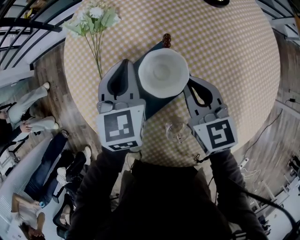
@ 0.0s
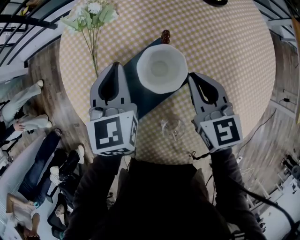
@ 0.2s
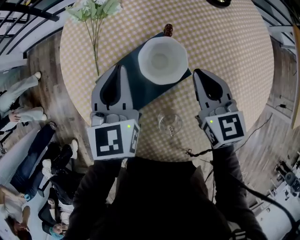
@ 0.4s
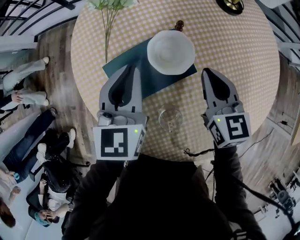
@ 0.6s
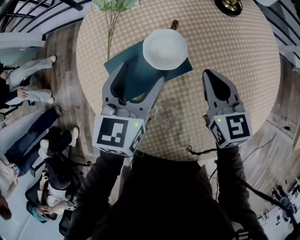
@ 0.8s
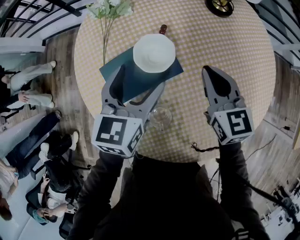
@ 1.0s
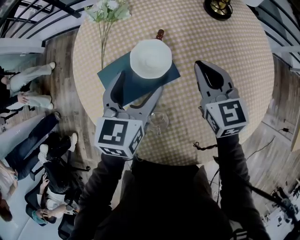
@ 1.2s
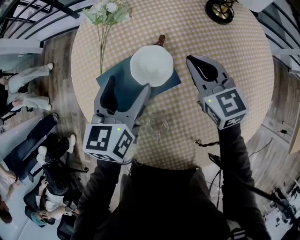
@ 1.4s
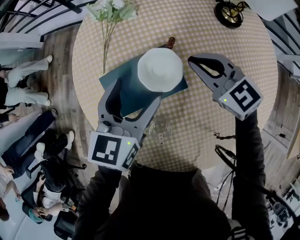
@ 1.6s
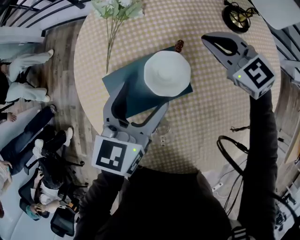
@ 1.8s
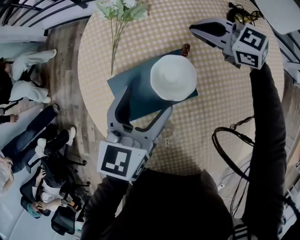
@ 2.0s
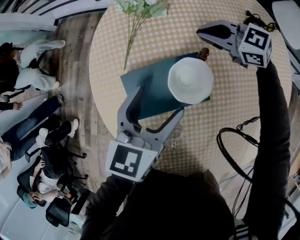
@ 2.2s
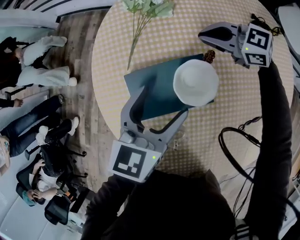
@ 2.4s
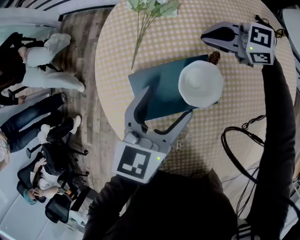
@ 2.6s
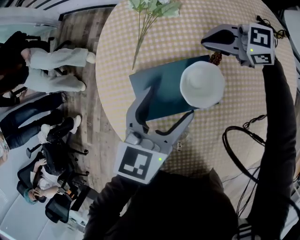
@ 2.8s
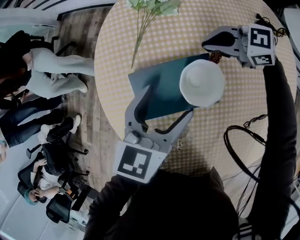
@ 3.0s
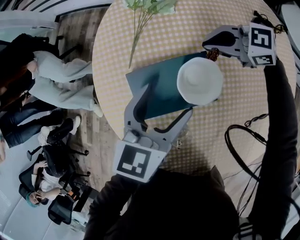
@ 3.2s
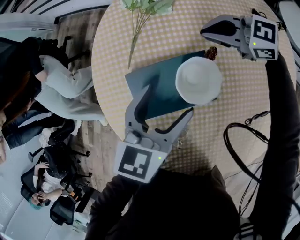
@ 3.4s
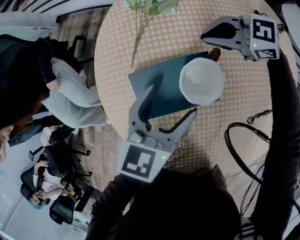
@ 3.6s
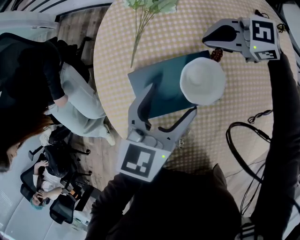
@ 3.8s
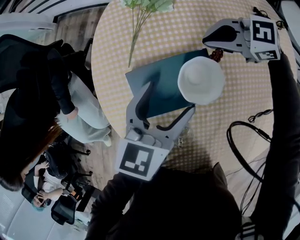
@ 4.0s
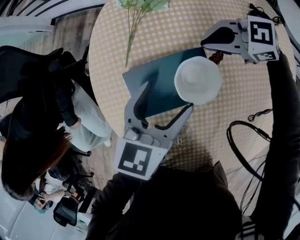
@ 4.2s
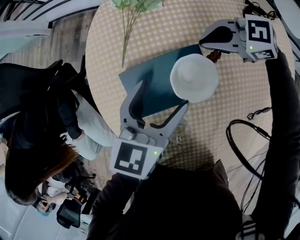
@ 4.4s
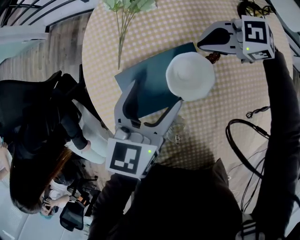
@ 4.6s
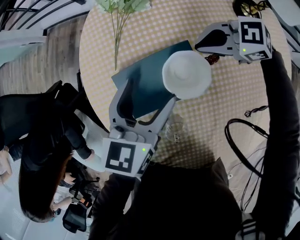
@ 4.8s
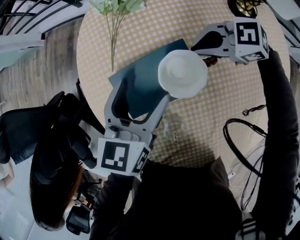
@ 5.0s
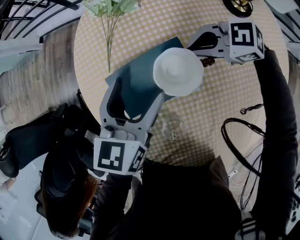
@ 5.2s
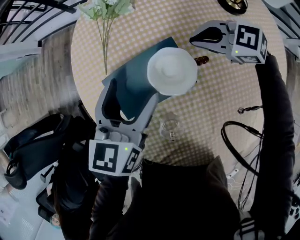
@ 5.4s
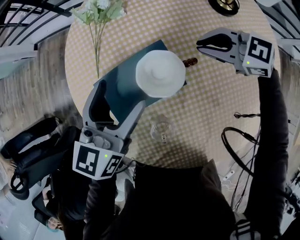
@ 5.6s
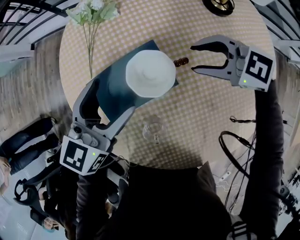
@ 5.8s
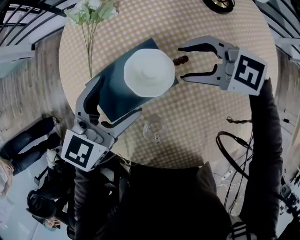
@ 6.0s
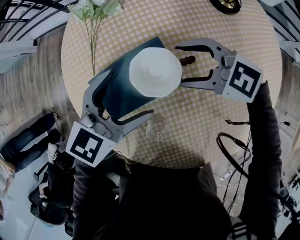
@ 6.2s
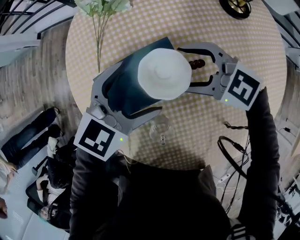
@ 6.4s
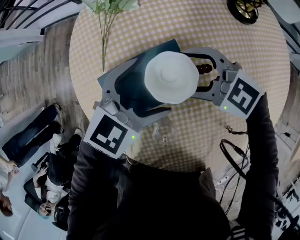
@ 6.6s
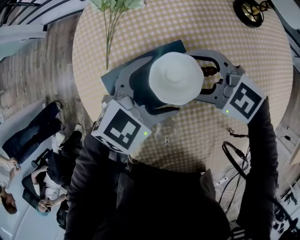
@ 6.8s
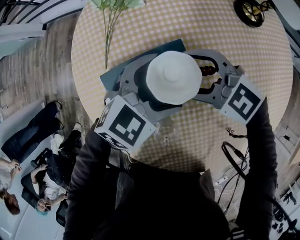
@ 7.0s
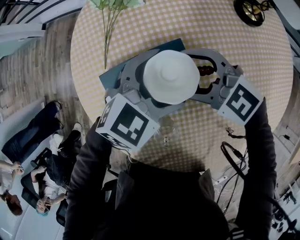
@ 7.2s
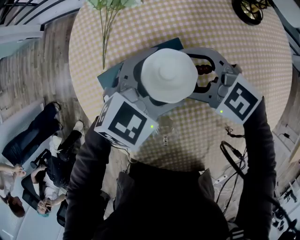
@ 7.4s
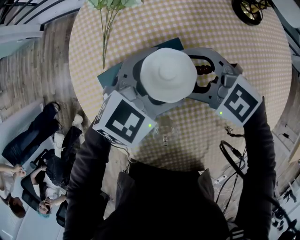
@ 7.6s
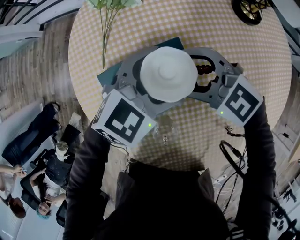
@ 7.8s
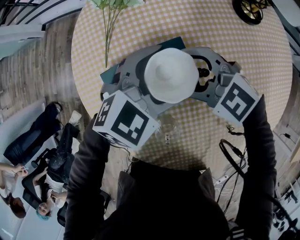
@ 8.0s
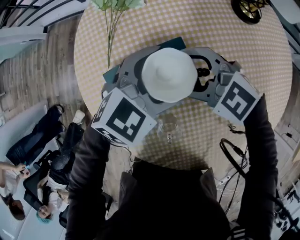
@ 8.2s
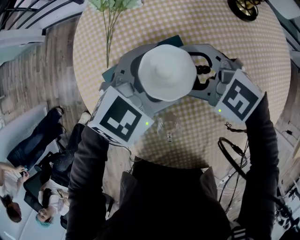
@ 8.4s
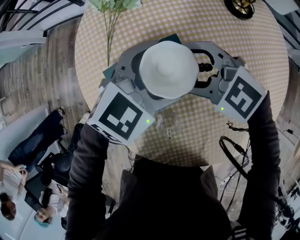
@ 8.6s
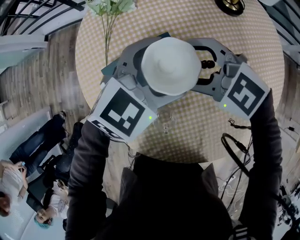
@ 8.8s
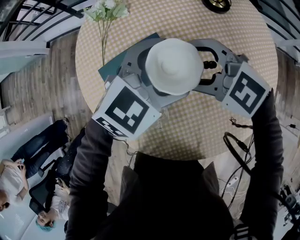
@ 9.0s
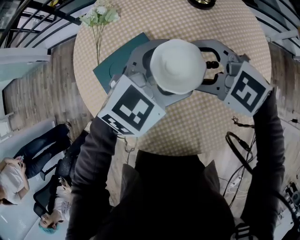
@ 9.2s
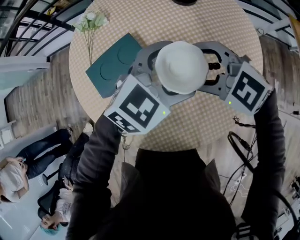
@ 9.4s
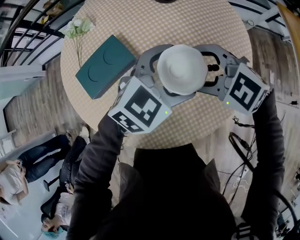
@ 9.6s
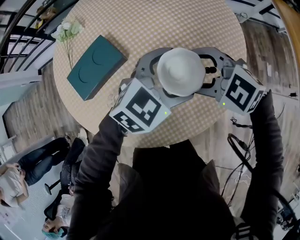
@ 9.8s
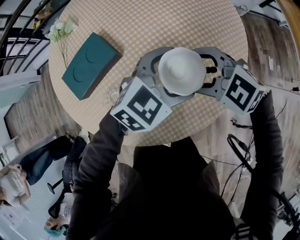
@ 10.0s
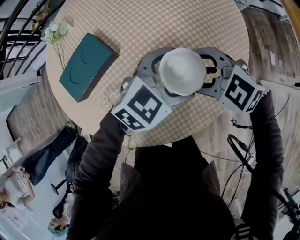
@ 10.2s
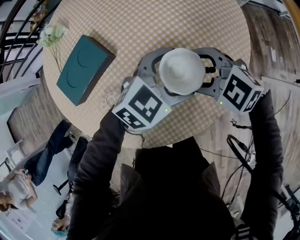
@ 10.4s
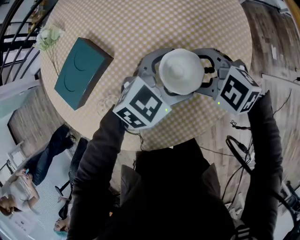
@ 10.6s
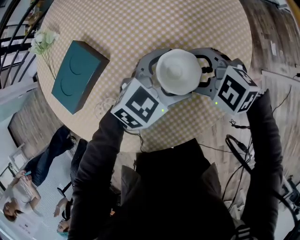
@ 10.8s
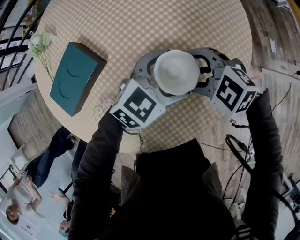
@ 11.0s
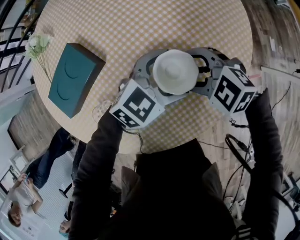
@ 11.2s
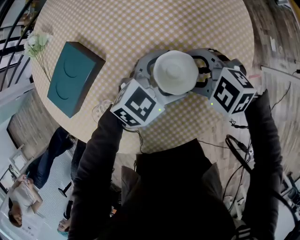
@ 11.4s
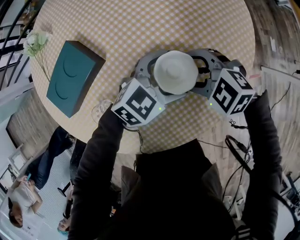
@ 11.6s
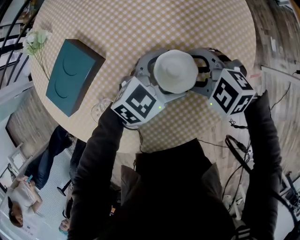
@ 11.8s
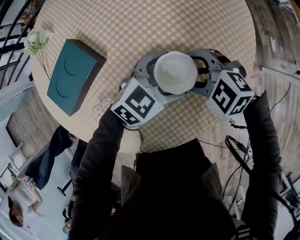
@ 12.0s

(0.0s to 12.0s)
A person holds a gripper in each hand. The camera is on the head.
0.0s - 1.6s: The left gripper heads backward, covering approximately 10 cm, and opens its fingers. Meanwhile the right gripper travels forward by approximately 5 cm, and changes its angle by roughly 40 degrees.
1.6s - 3.0s: The right gripper shifts by about 10 cm, and swivels some 40 degrees.
3.0s - 4.4s: The grippers stay close to where they were, moving slightly.
4.4s - 6.0s: The left gripper changes its angle by approximately 30 degrees. The right gripper changes place by roughly 10 cm, and opens.
6.0s - 7.6s: The right gripper changes place by some 10 cm. The left gripper shifts by some 10 cm, and turns by roughly 20 degrees.
7.6s - 9.0s: The grippers both shift upward by roughly 10 cm.
9.0s - 10.4s: The right gripper moves approximately 25 cm, while the left gripper moves some 25 cm.
10.4s - 12.0s: Both grippers travel together downward, roughly 5 cm.

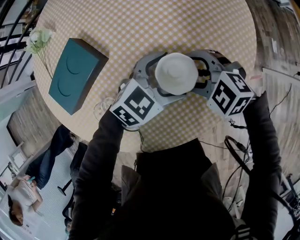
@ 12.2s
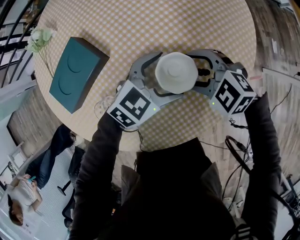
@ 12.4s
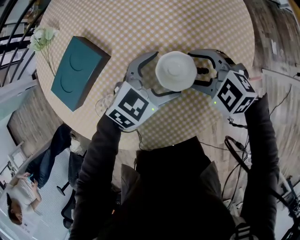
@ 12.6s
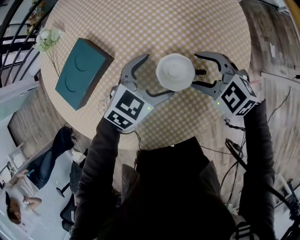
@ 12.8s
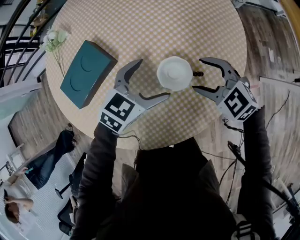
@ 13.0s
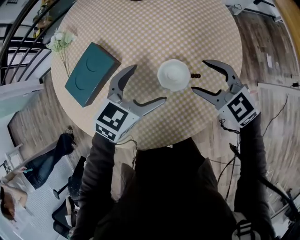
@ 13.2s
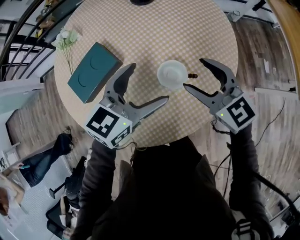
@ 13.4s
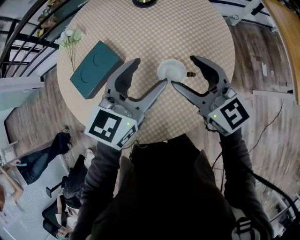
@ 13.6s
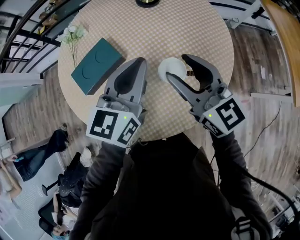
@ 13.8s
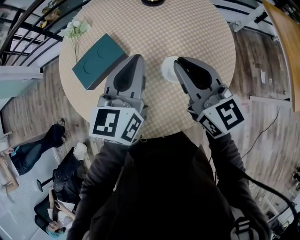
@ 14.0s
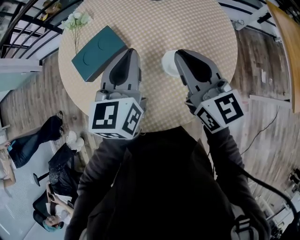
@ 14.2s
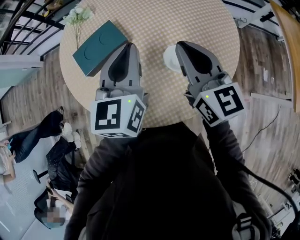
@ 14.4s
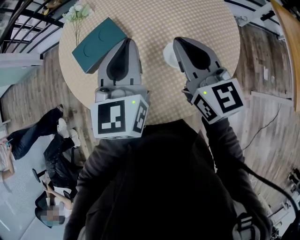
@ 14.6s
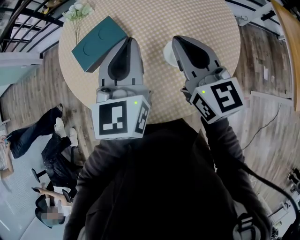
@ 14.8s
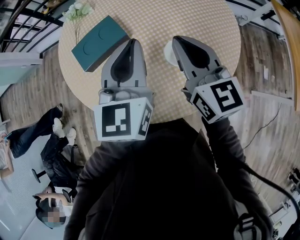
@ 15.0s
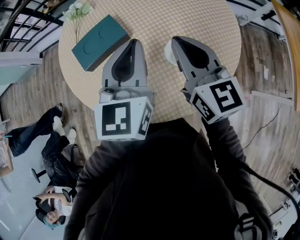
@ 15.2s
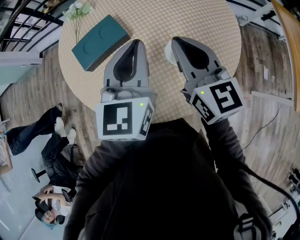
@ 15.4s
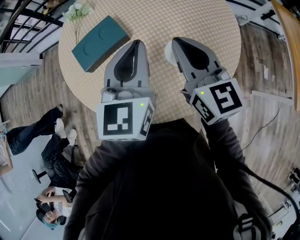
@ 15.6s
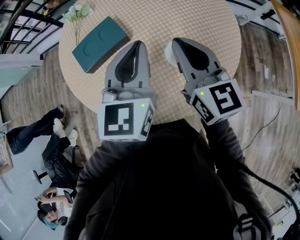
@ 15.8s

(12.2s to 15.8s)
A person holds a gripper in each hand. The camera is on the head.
12.2s - 14.0s: The two grippers go some 25 cm upward. The left gripper swivels about 60 degrees, and closes. The right gripper points its fingers approximately 40 degrees further upward, and closes its fingers.
14.0s - 15.8s: The grippers move only a little.

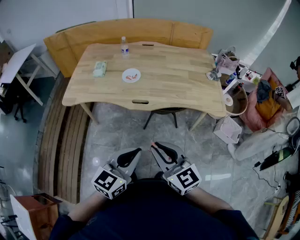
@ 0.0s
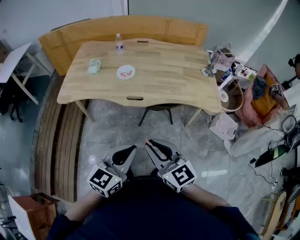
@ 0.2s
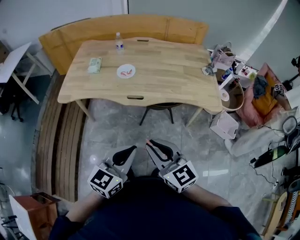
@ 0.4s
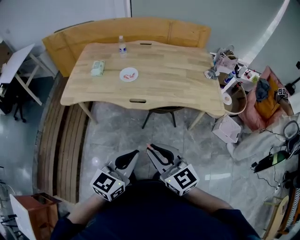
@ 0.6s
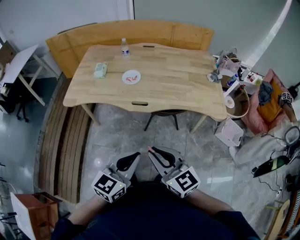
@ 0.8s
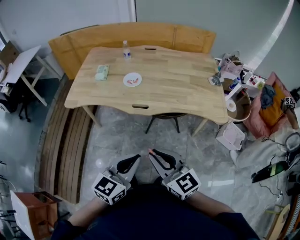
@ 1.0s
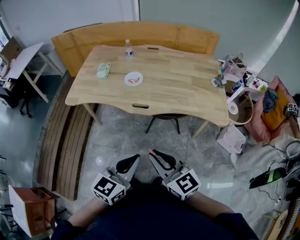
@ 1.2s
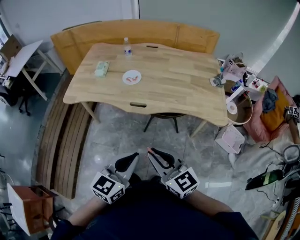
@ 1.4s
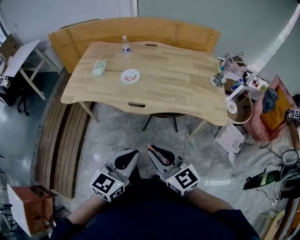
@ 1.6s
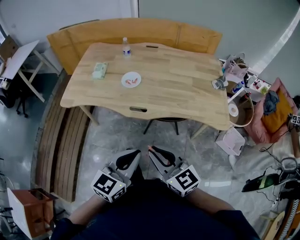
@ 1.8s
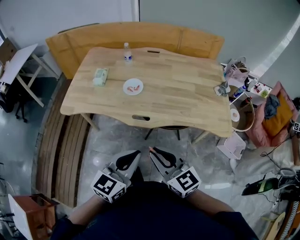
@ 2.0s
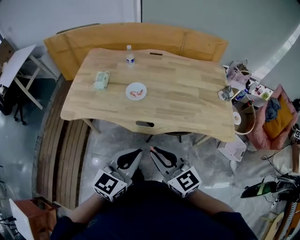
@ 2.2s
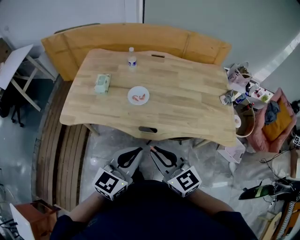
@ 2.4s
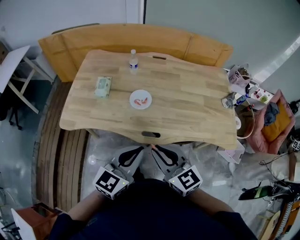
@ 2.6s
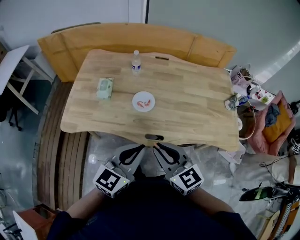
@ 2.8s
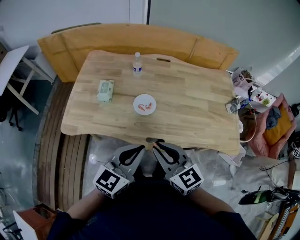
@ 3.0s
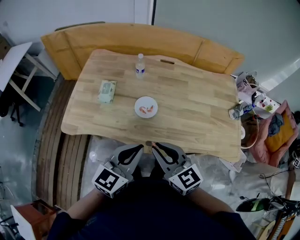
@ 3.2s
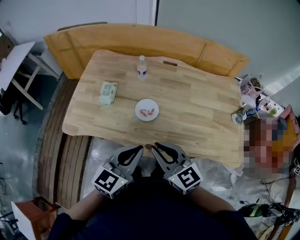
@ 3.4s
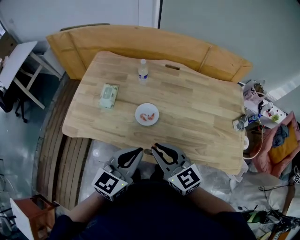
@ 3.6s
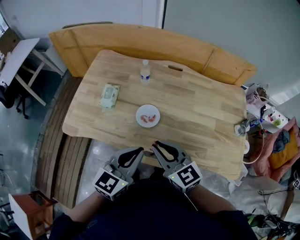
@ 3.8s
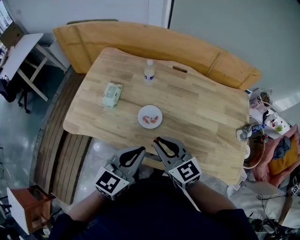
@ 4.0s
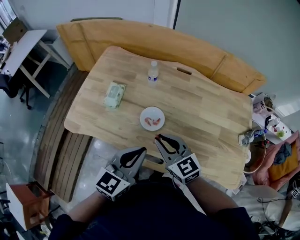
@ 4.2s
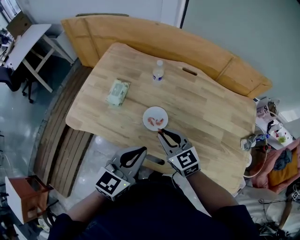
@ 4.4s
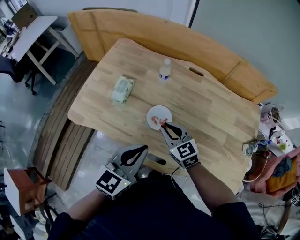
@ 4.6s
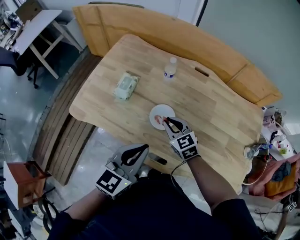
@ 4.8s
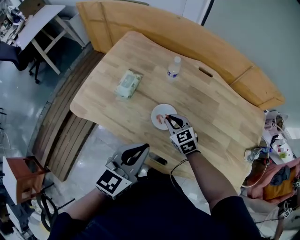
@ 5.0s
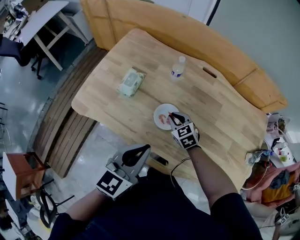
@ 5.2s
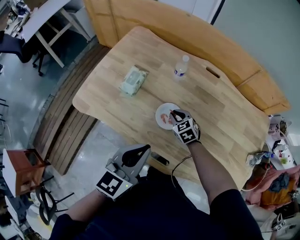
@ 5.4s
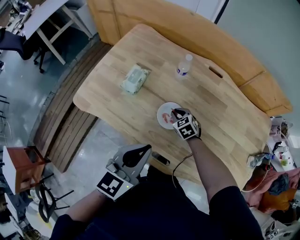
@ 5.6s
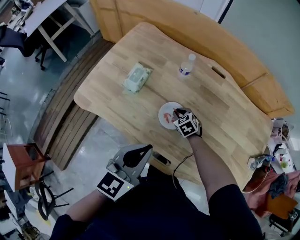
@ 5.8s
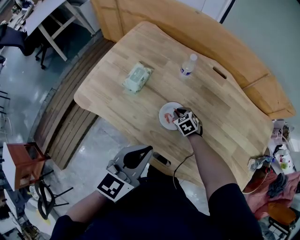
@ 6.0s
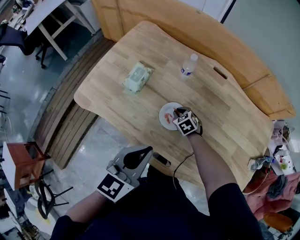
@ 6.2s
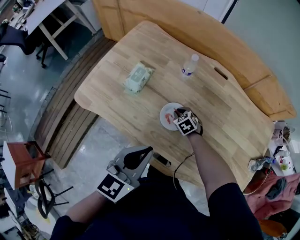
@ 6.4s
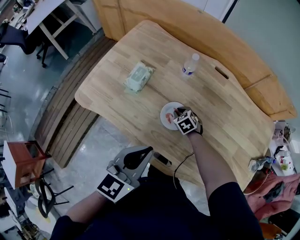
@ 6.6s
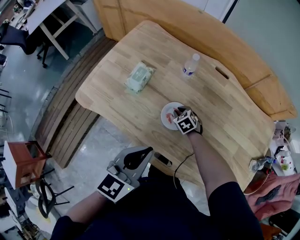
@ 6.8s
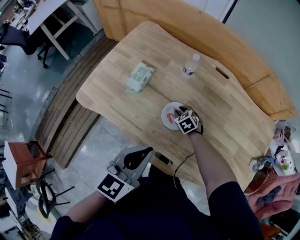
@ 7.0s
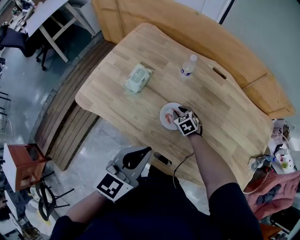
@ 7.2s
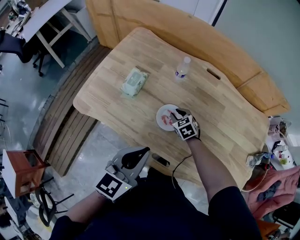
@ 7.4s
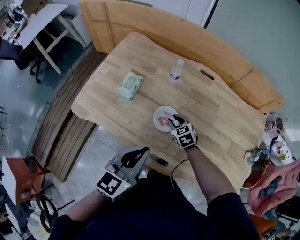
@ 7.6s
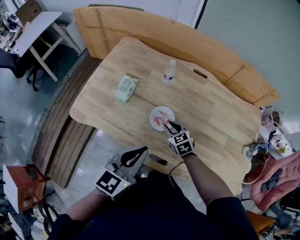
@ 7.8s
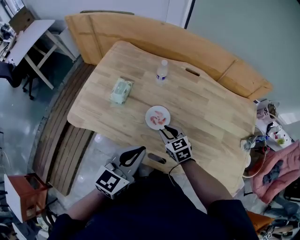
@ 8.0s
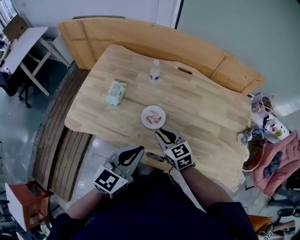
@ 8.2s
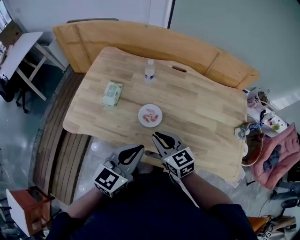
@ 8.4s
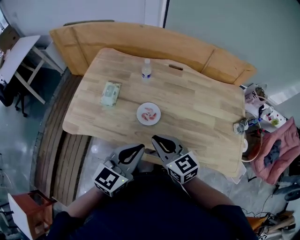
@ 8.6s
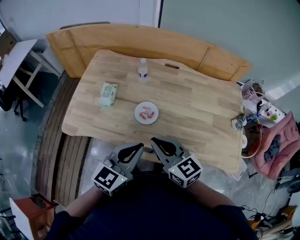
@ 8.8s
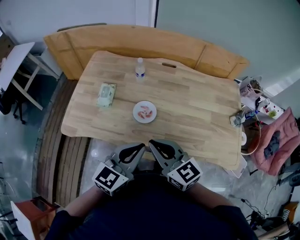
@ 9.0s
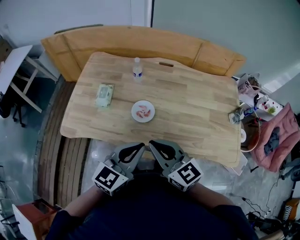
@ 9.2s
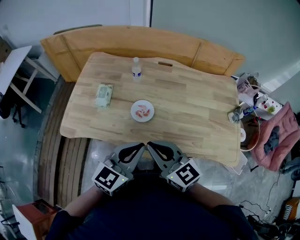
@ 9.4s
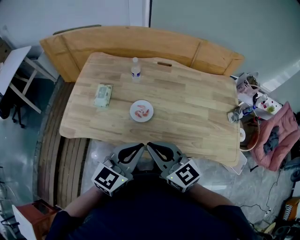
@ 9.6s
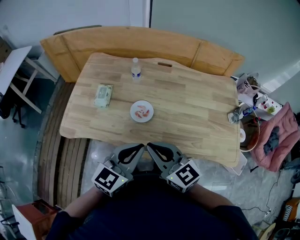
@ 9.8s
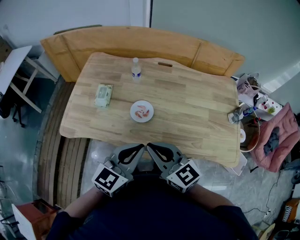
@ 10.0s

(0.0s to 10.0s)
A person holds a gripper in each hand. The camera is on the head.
0.0s - 1.4s: The grippers make only small movements.
1.4s - 2.8s: The two grippers go some 30 cm forward and to the left.
2.8s - 4.2s: Both grippers move forward, about 15 cm.
4.2s - 5.8s: The right gripper heads downward and forward, covering about 30 cm, and tips its fingers downward by about 40 degrees. The left gripper ends up about 5 cm from where it was.
5.8s - 7.2s: The grippers make only small movements.
7.2s - 8.6s: The right gripper travels upward and backward by roughly 35 cm, and points its fingers roughly 40 degrees further upward; the left gripper moves backward, some 5 cm, and changes its angle by some 20 degrees.
8.6s - 10.0s: The right gripper heads backward, covering about 5 cm.
